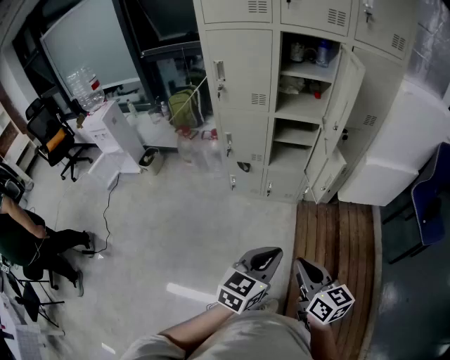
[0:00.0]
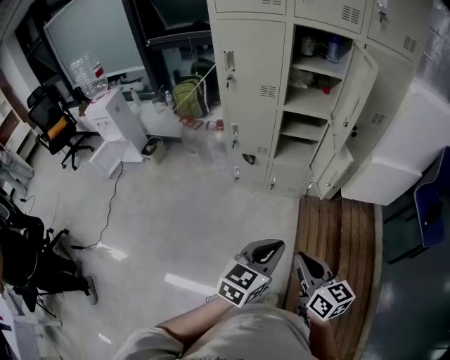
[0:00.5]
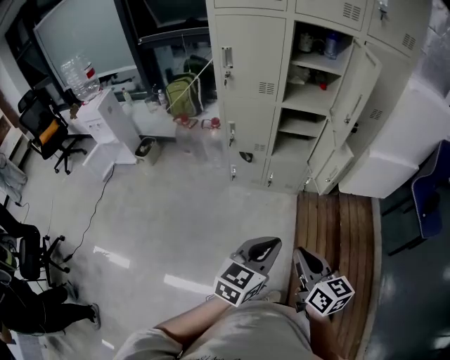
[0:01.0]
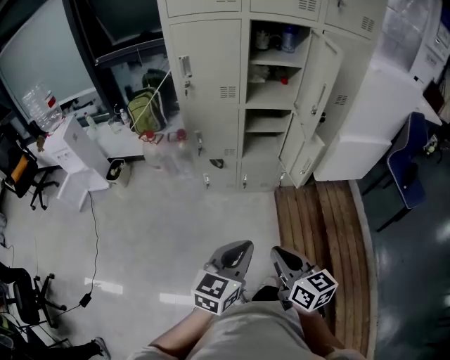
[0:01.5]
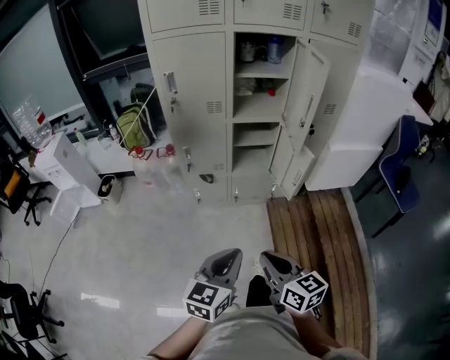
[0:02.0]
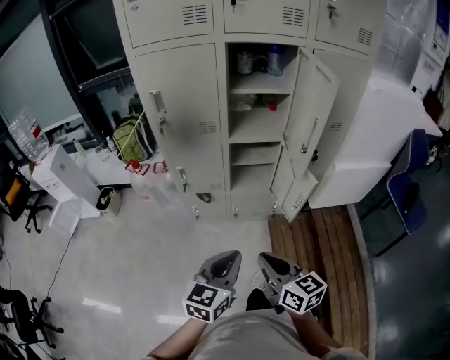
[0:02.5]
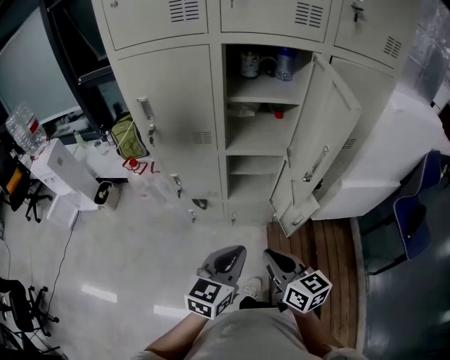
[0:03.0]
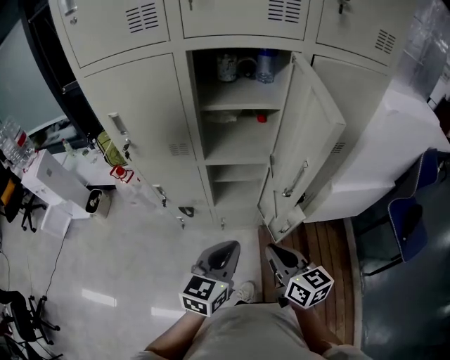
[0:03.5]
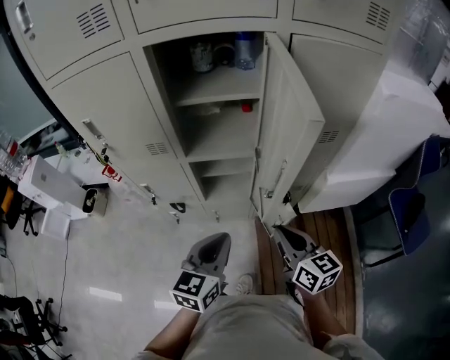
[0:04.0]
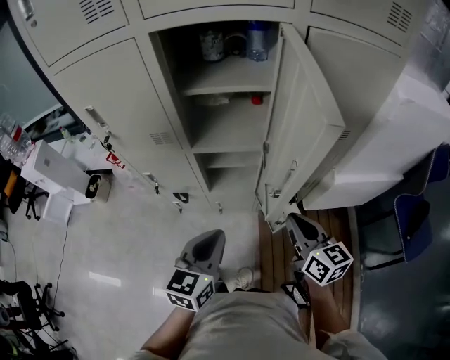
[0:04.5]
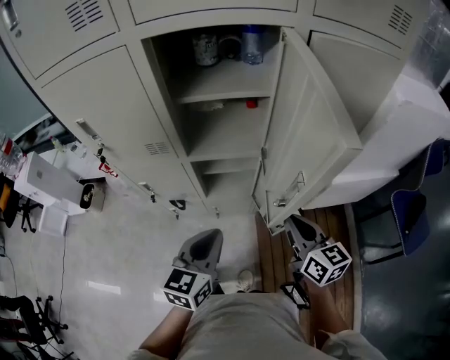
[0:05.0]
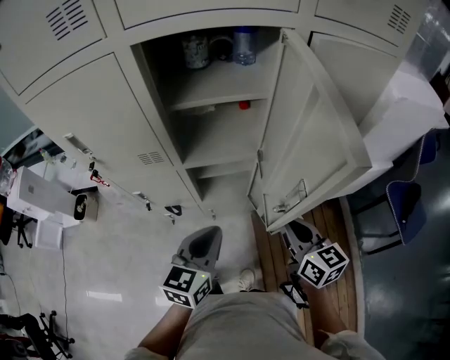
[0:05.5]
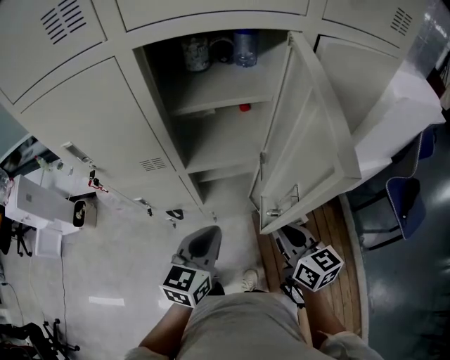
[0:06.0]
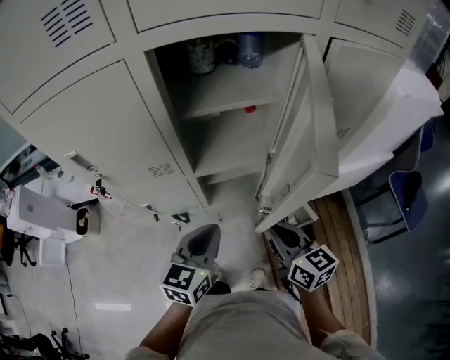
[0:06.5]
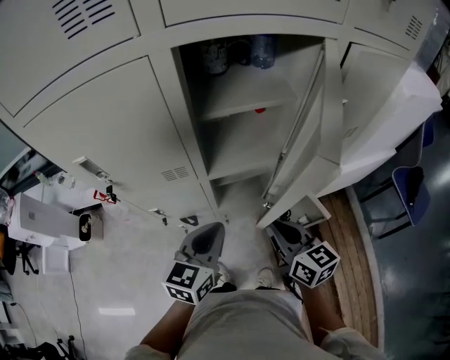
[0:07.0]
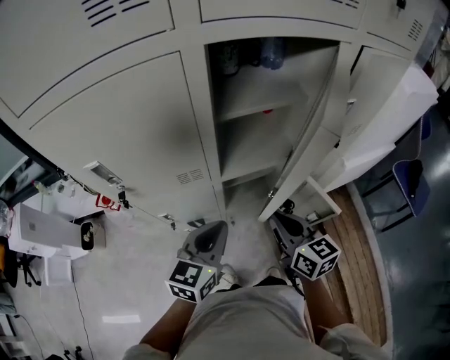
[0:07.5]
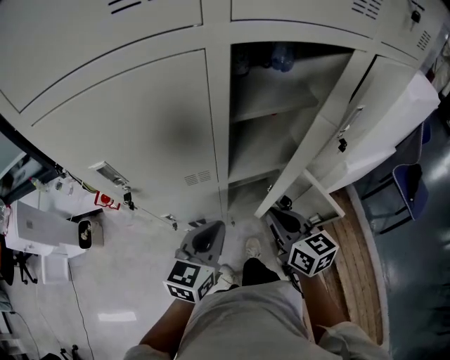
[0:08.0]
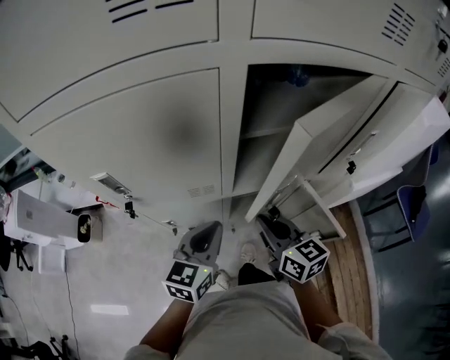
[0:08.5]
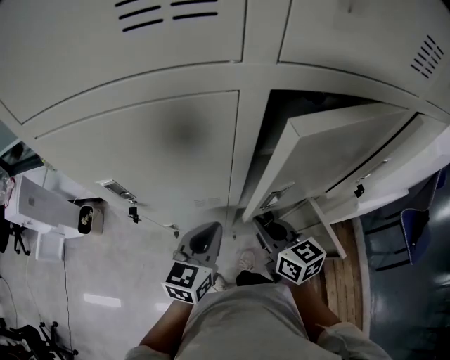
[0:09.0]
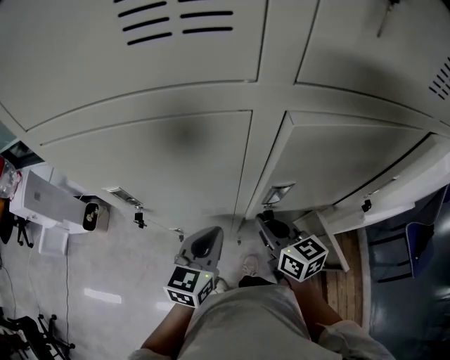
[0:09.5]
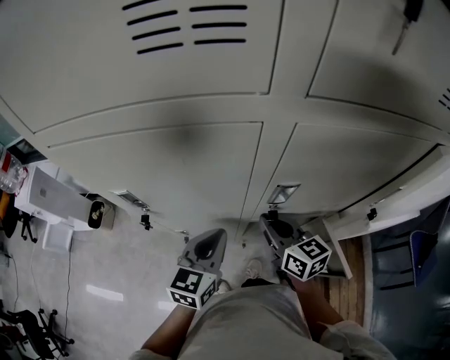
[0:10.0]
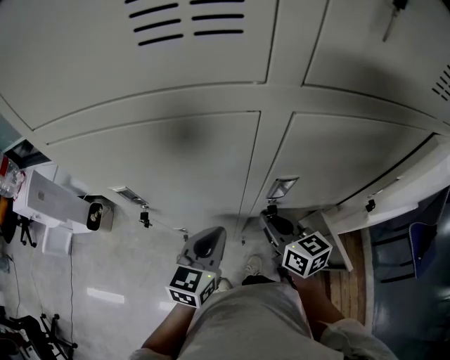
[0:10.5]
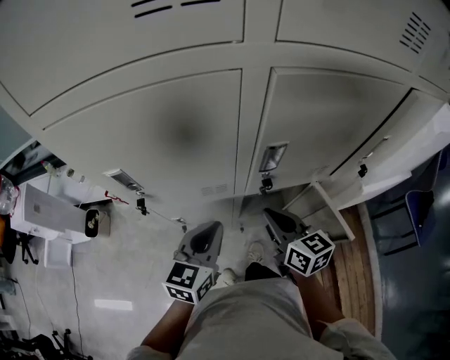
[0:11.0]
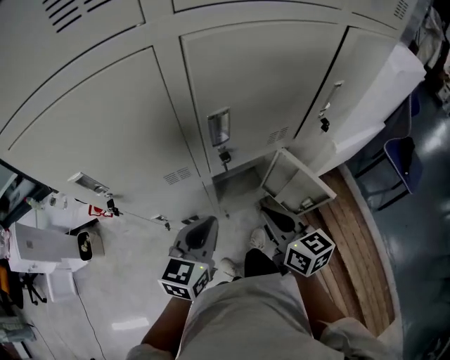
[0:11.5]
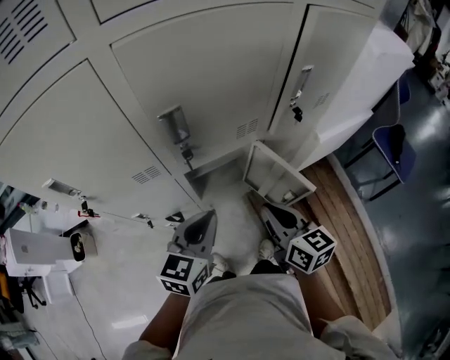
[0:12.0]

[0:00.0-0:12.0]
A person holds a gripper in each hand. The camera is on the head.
0:00.0 to 0:02.0: The right gripper travels to the left and forward by roughly 10 cm. Meanwhile the left gripper shifts about 10 cm to the left.
0:02.0 to 0:04.0: The grippers both shift forward and to the right by about 40 cm.
0:04.0 to 0:06.0: The grippers both shift forward and to the left by some 10 cm.
0:06.0 to 0:08.0: The two grippers go roughly 15 cm to the left.
0:08.0 to 0:10.0: The left gripper goes some 10 cm forward. Meanwhile the right gripper goes approximately 15 cm forward and to the left.
0:10.0 to 0:12.0: The right gripper goes about 25 cm backward and to the right, and swivels approximately 30 degrees. The left gripper moves to the right and backward, some 15 cm, and swivels roughly 20 degrees.

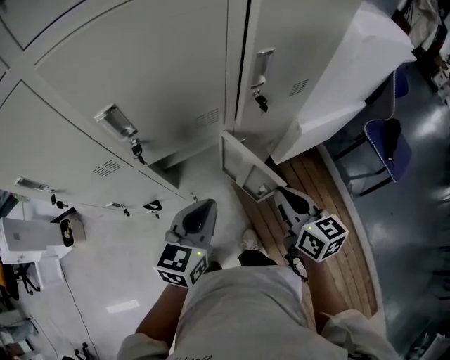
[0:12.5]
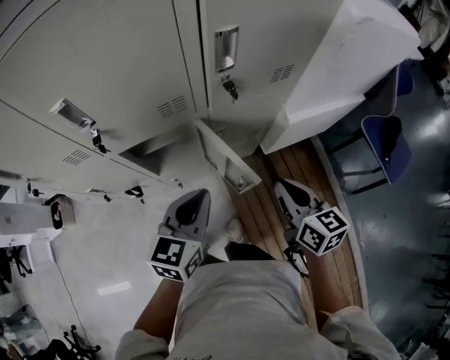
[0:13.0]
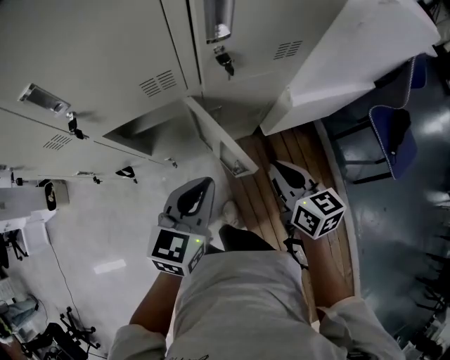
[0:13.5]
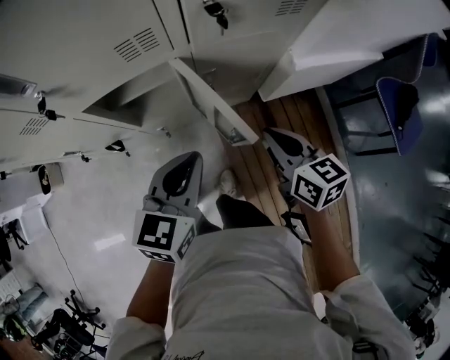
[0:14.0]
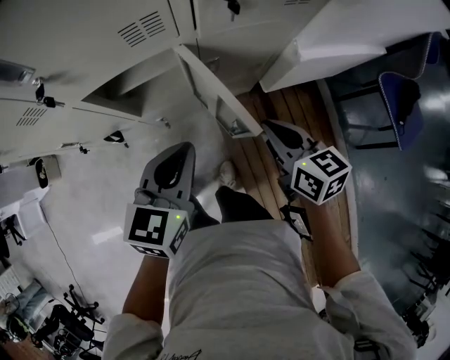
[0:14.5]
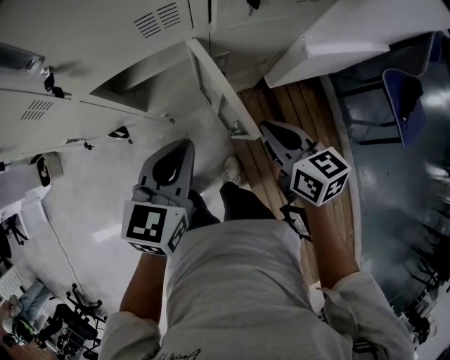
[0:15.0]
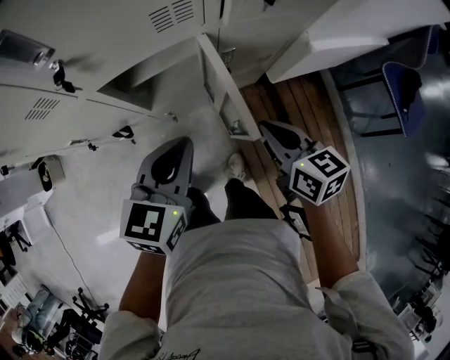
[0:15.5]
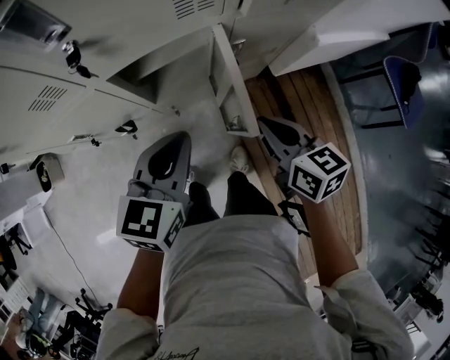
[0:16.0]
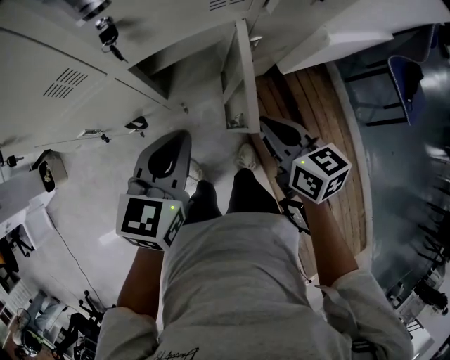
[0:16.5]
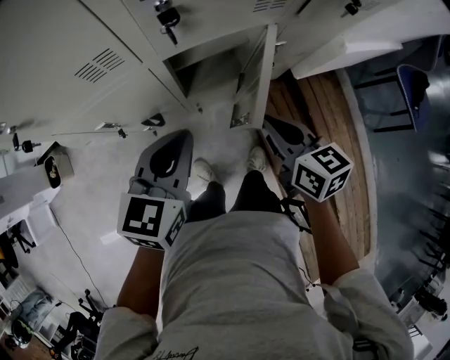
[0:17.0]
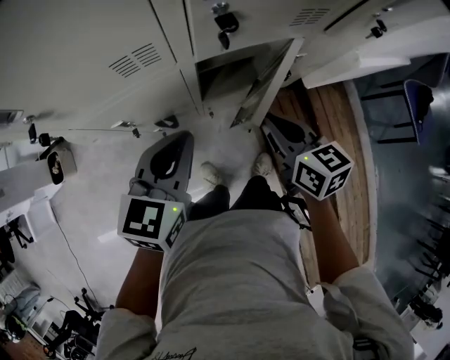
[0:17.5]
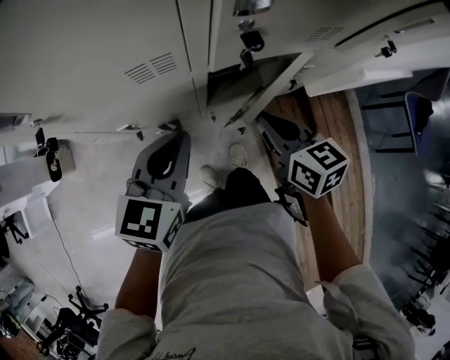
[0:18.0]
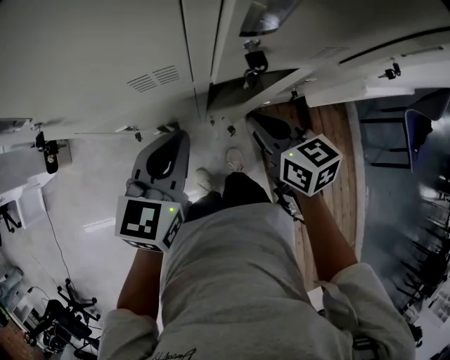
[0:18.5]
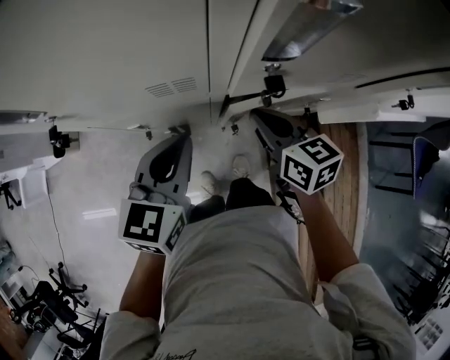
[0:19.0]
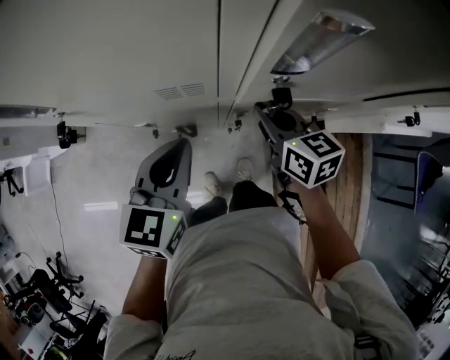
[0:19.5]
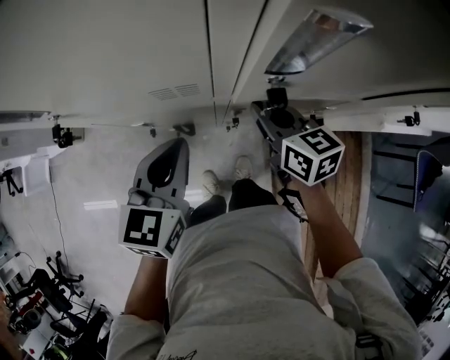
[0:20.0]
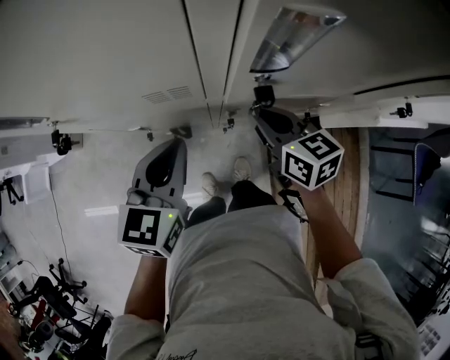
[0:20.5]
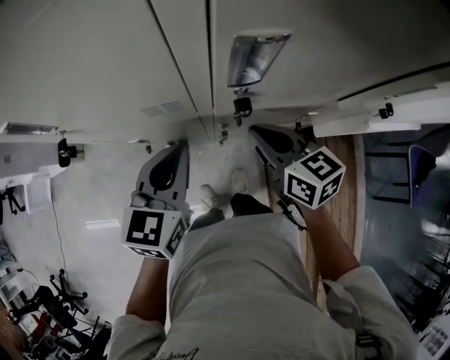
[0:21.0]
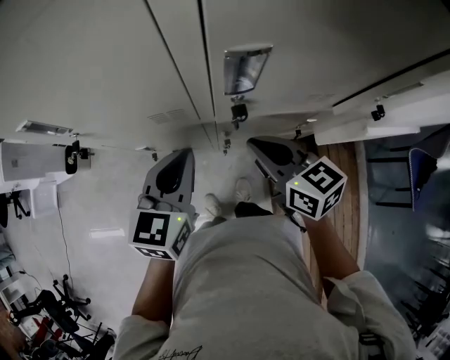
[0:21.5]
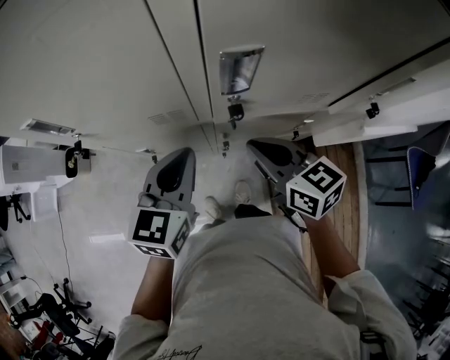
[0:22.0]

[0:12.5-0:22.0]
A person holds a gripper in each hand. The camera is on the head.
0:12.5 to 0:14.5: The grippers both shift downward and to the right by approximately 10 cm.
0:14.5 to 0:16.5: Both grippers travel together to the left, some 15 cm.
0:16.5 to 0:18.0: The right gripper travels to the left and forward by about 15 cm. The left gripper shifts approximately 15 cm to the left.
0:18.0 to 0:20.0: The right gripper moves forward, approximately 10 cm.
0:20.0 to 0:22.0: The right gripper moves upward and backward, roughly 10 cm. Meanwhile the left gripper moves upward, some 5 cm.

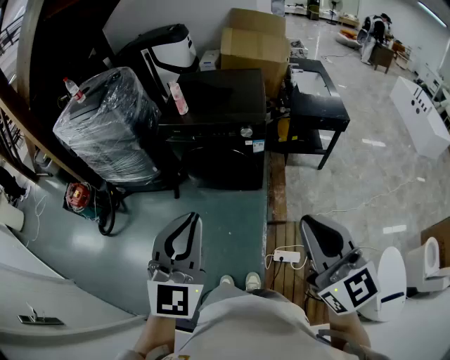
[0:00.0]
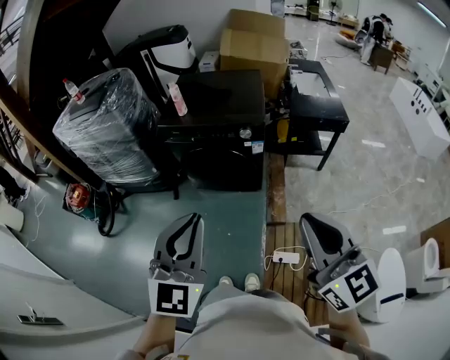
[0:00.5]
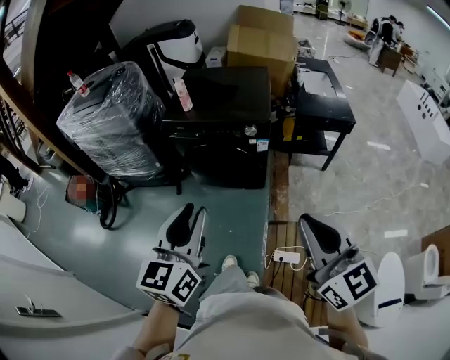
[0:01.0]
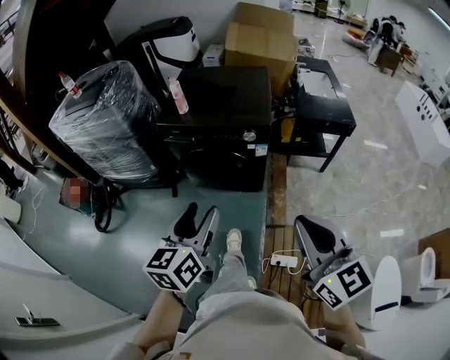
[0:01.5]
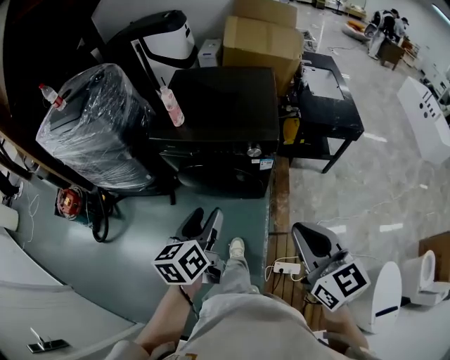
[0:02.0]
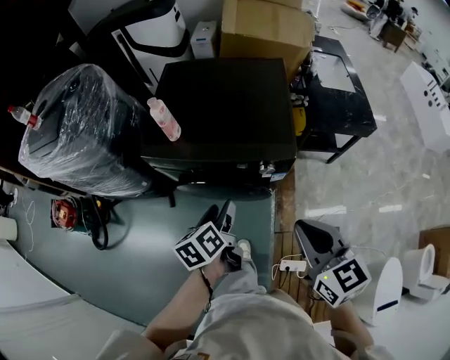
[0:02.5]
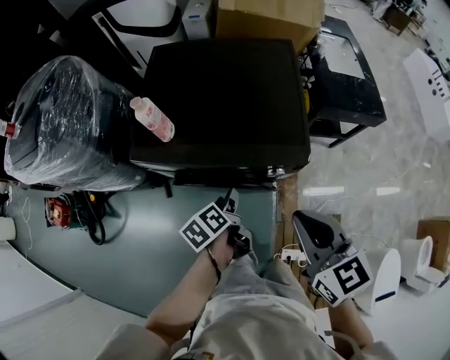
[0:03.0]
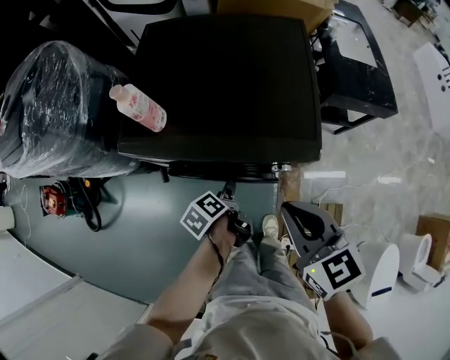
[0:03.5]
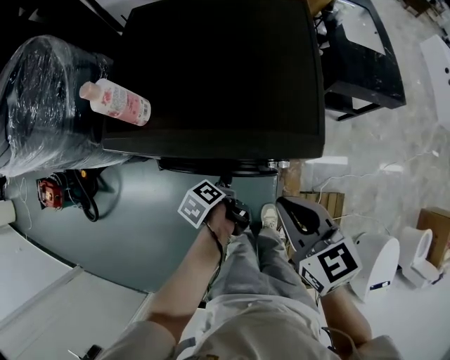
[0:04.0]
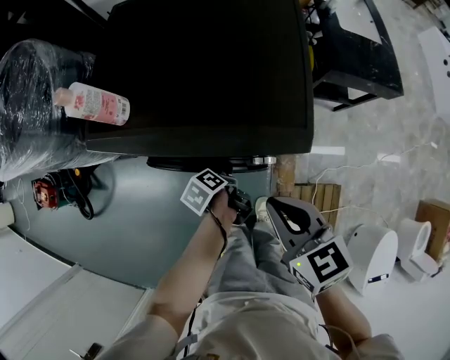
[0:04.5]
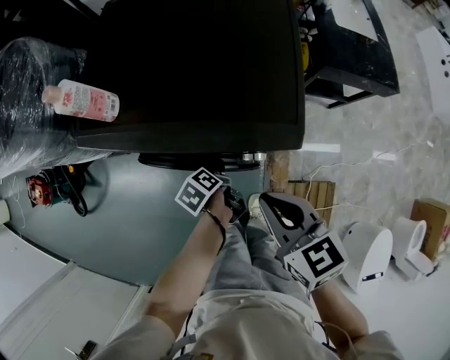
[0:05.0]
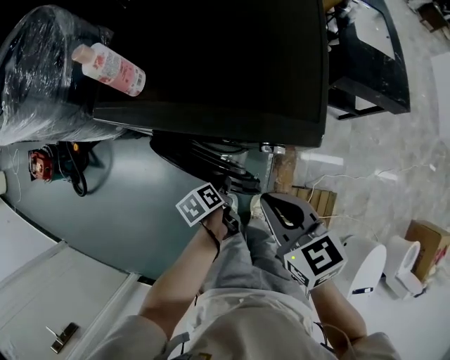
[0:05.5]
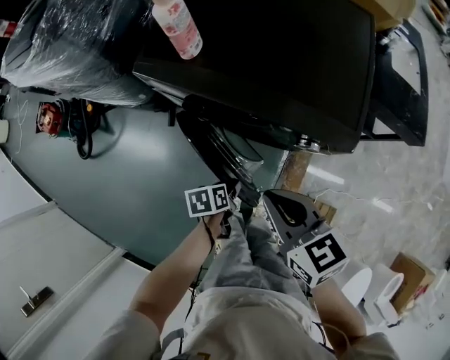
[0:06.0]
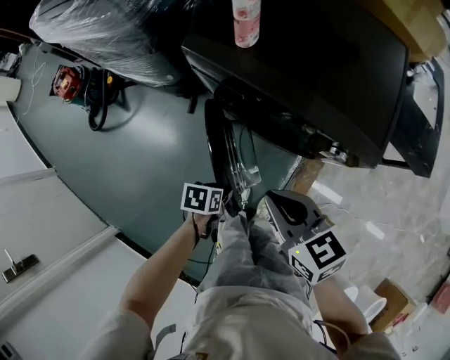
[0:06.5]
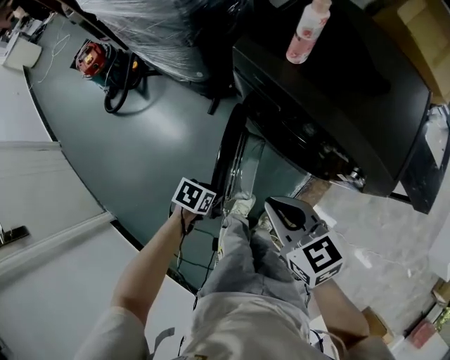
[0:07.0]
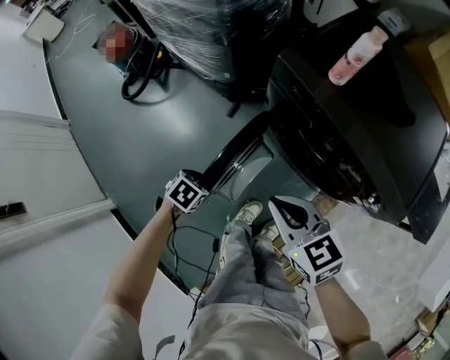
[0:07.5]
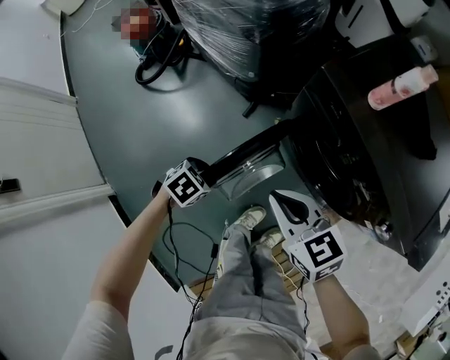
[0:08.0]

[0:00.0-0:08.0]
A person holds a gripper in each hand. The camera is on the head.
0:00.0 to 0:02.0: The two grippers go about 25 cm forward and downward. The left gripper rolls counterclockwise, seen from behind, by about 50 degrees, and opens.
0:02.0 to 0:04.0: The right gripper shifts about 35 cm forward and downward, and turns by roughly 20 degrees. Meanwhile the left gripper is displaced downward and forward by some 40 cm, and tilts its fingers about 40 degrees downward.
0:04.0 to 0:06.0: The right gripper heads to the left, covering some 10 cm. The left gripper shifts roughly 15 cm backward, and rotates some 30 degrees.
0:06.0 to 0:08.0: The right gripper ends up about 30 cm from where it was, and turns by approximately 40 degrees; the left gripper shifts by about 35 cm, and turns by approximately 40 degrees.
